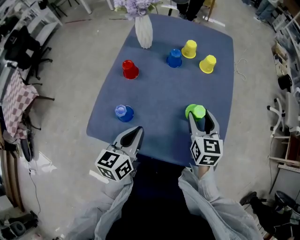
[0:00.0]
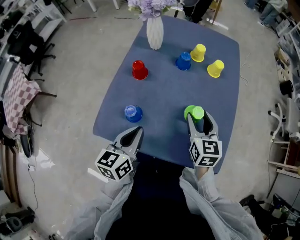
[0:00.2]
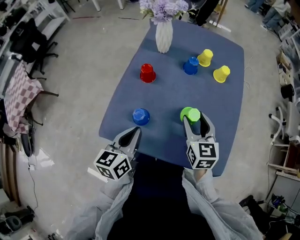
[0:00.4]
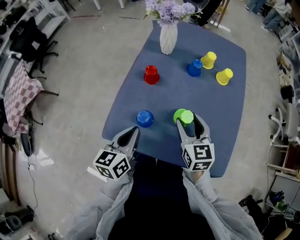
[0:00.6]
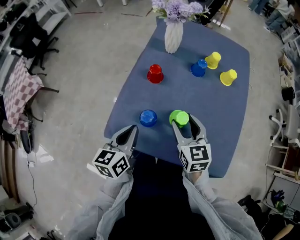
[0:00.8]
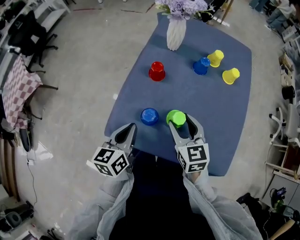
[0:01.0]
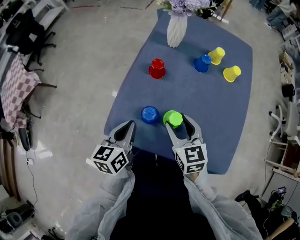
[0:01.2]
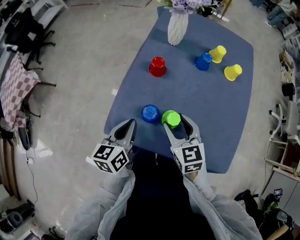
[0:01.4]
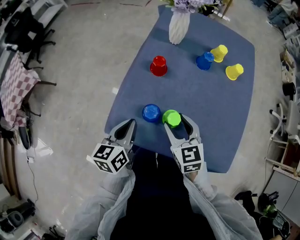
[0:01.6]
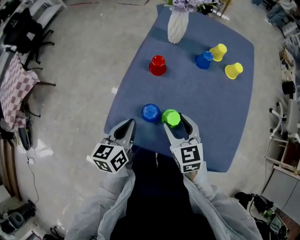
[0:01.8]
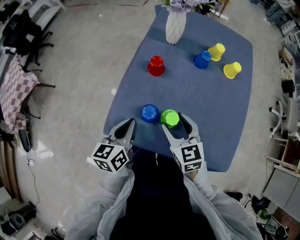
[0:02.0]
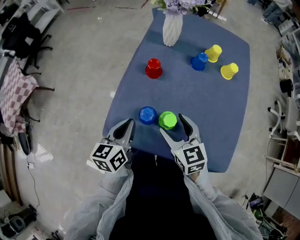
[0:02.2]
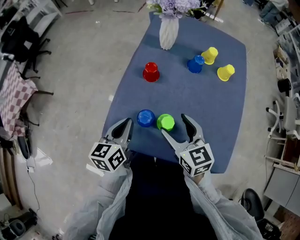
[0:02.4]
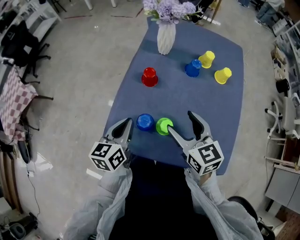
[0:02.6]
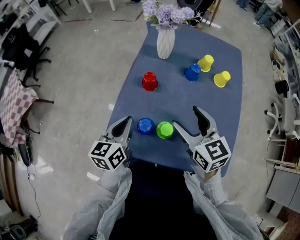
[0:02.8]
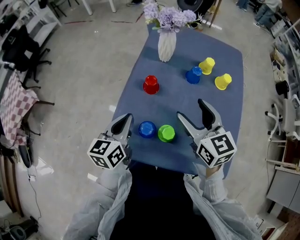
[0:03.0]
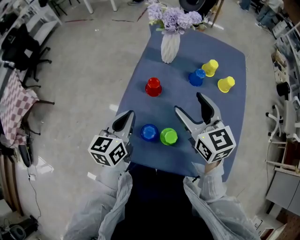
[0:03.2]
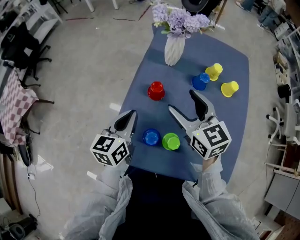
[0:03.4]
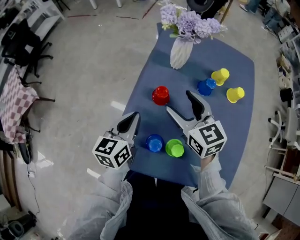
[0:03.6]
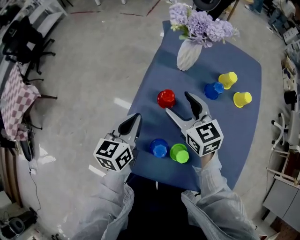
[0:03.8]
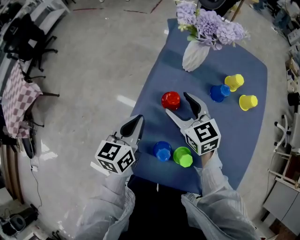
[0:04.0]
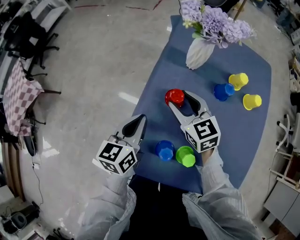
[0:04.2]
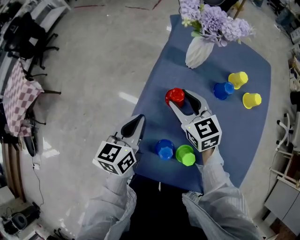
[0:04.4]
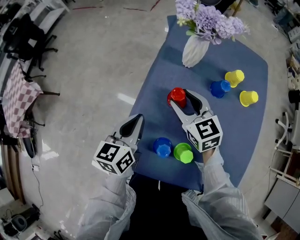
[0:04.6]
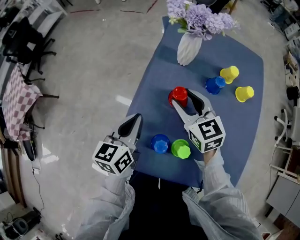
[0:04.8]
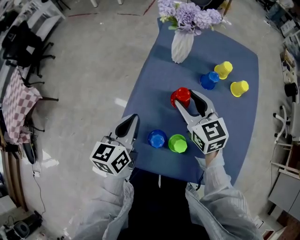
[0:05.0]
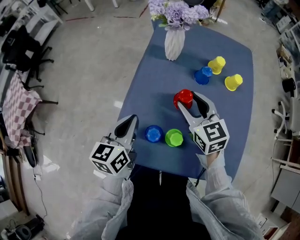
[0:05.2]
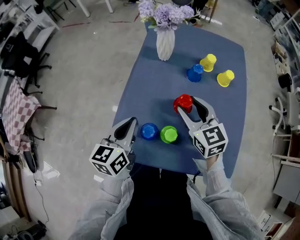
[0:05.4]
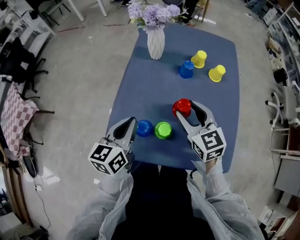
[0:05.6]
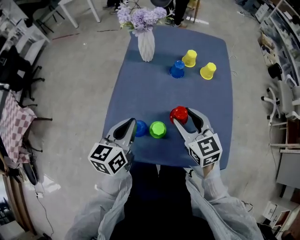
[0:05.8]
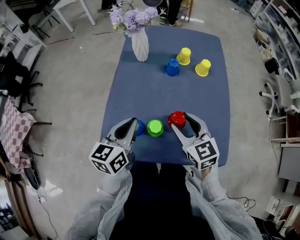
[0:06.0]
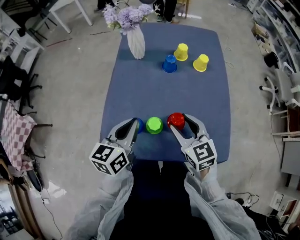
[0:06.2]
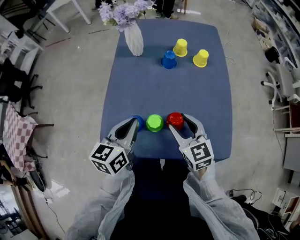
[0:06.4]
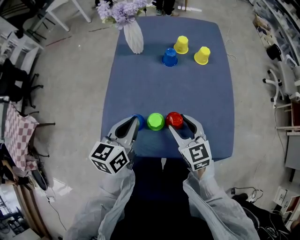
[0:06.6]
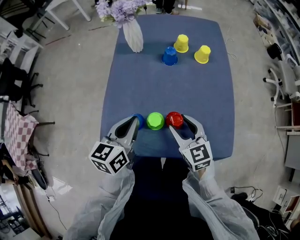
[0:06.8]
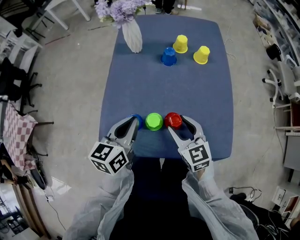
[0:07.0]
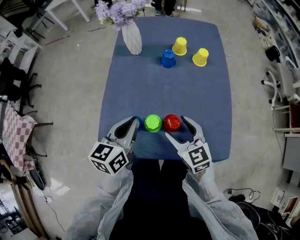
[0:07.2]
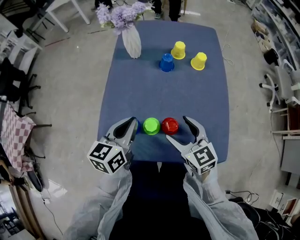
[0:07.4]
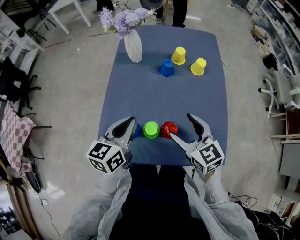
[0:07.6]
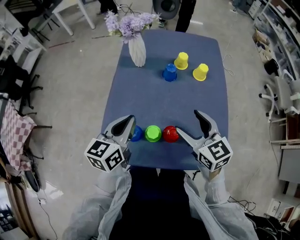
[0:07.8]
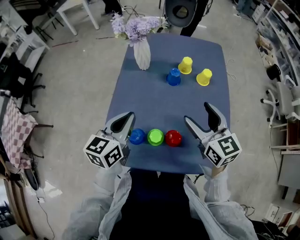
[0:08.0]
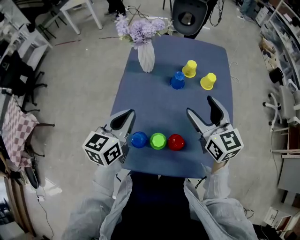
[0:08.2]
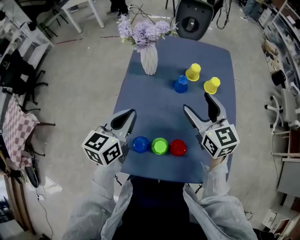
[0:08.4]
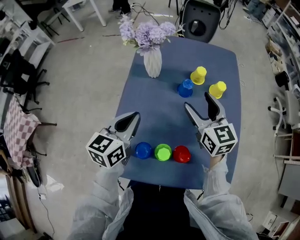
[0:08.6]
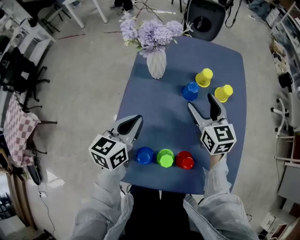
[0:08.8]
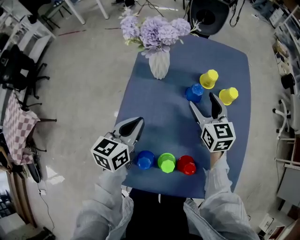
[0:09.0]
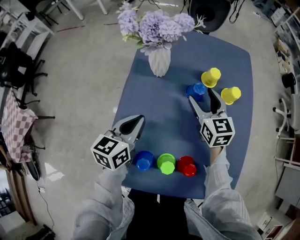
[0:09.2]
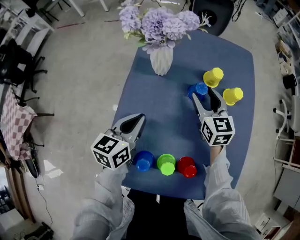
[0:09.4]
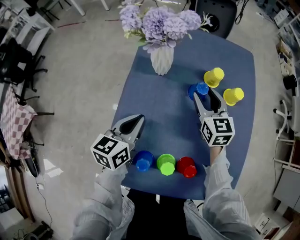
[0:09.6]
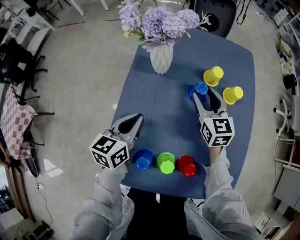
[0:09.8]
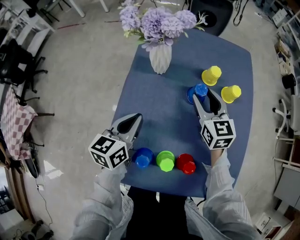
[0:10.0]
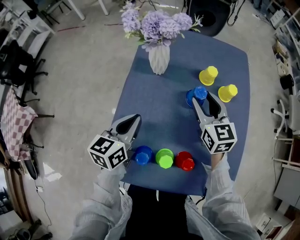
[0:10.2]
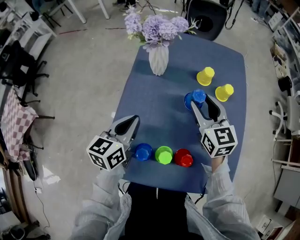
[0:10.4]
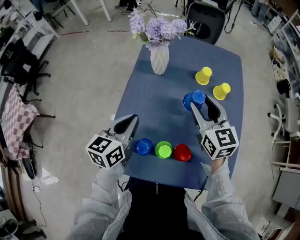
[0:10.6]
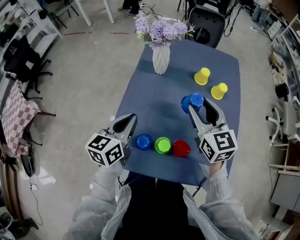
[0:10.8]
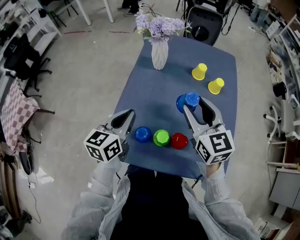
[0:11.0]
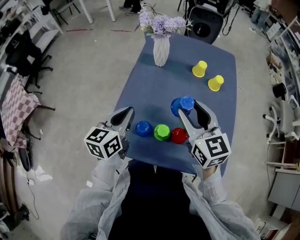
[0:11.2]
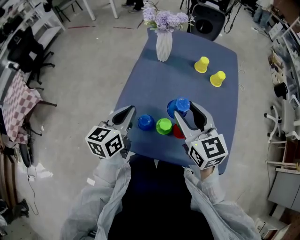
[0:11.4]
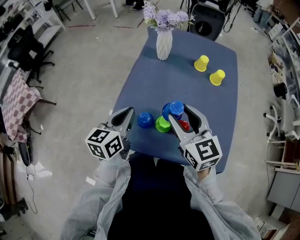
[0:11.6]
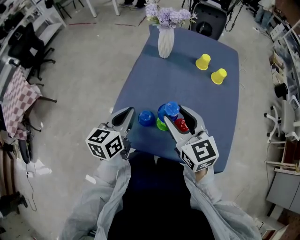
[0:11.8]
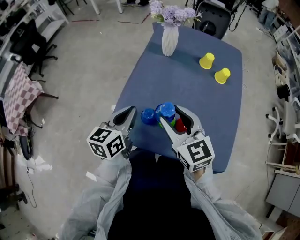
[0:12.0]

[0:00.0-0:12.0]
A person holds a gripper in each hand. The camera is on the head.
0:00.0 to 0:01.6: Both grippers move to the left, approximately 20 cm. The right gripper swivels approximately 20 degrees.
0:01.6 to 0:03.0: The right gripper heads upward, forward and to the right, covering some 15 cm. The left gripper heads forward, covering roughly 10 cm.
0:03.0 to 0:04.4: The right gripper shifts about 20 cm forward, to the left and downward. Meanwhile the left gripper moves forward, approximately 10 cm.
0:04.4 to 0:06.0: The right gripper heads backward and to the right, covering roughly 25 cm; the left gripper is displaced backward, to the right and upward by roughly 15 cm.
0:06.0 to 0:07.6: The right gripper opens its fingers.
0:07.6 to 0:09.0: The right gripper is displaced forward by roughly 25 cm. The left gripper goes approximately 15 cm forward and to the left.
0:09.0 to 0:10.4: The right gripper moves roughly 5 cm.
0:10.4 to 0:12.0: The right gripper is displaced backward and to the left by about 25 cm; the left gripper heads backward, covering approximately 15 cm.

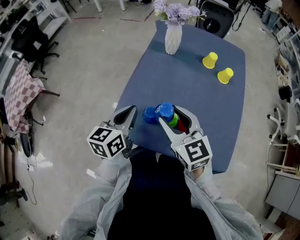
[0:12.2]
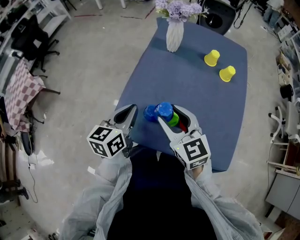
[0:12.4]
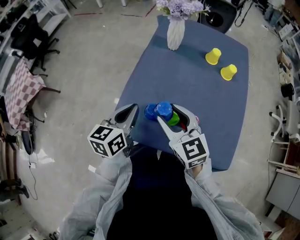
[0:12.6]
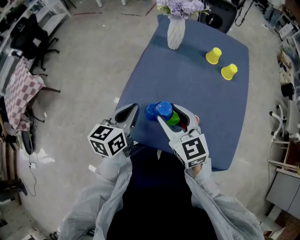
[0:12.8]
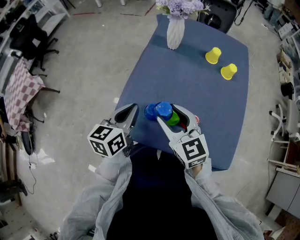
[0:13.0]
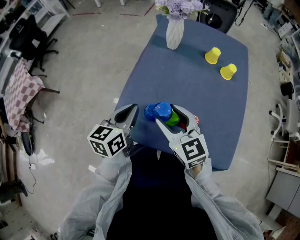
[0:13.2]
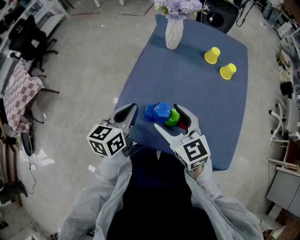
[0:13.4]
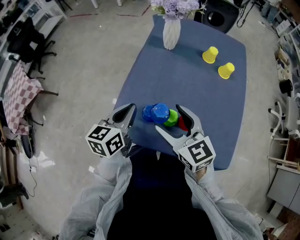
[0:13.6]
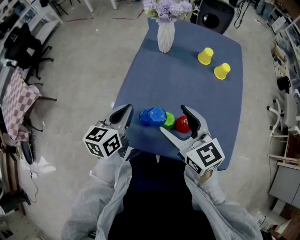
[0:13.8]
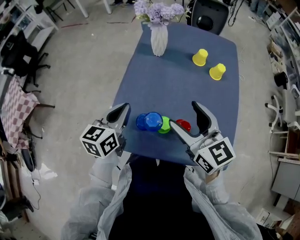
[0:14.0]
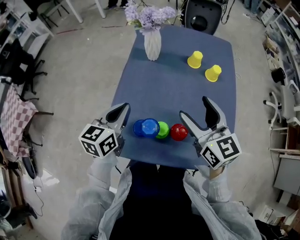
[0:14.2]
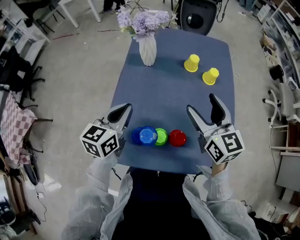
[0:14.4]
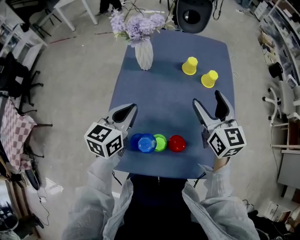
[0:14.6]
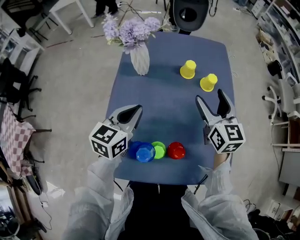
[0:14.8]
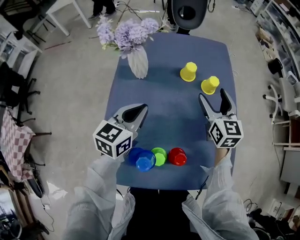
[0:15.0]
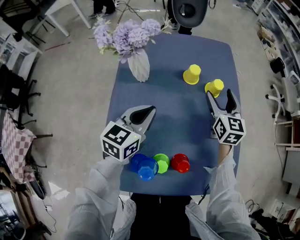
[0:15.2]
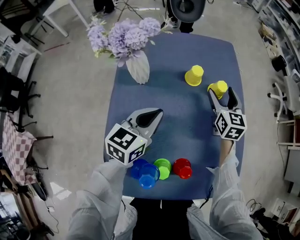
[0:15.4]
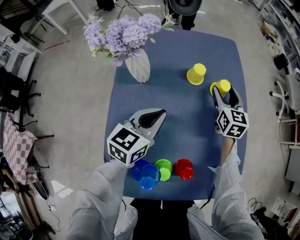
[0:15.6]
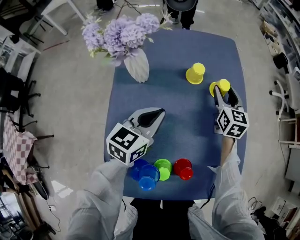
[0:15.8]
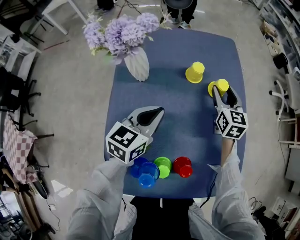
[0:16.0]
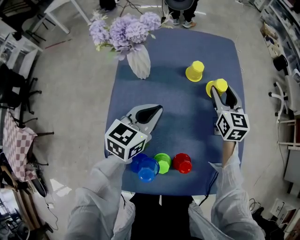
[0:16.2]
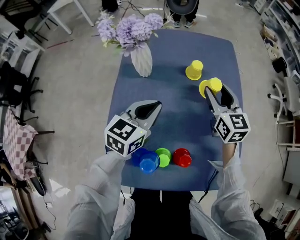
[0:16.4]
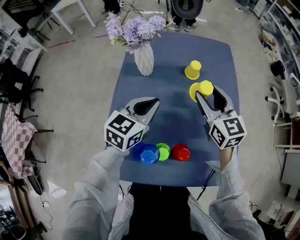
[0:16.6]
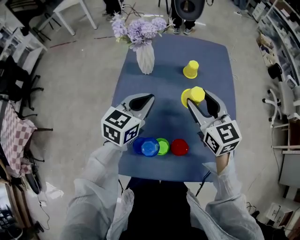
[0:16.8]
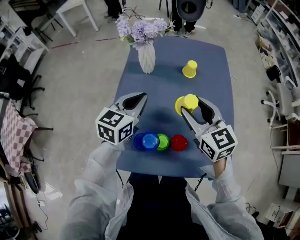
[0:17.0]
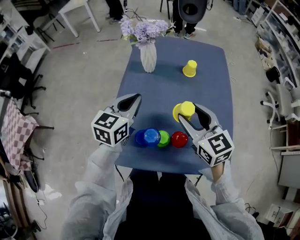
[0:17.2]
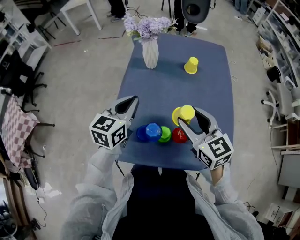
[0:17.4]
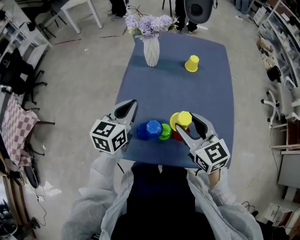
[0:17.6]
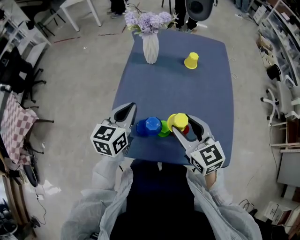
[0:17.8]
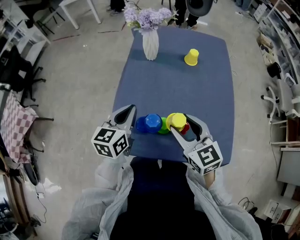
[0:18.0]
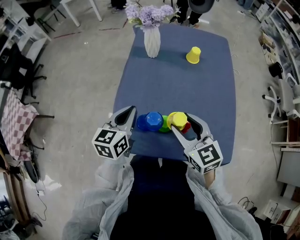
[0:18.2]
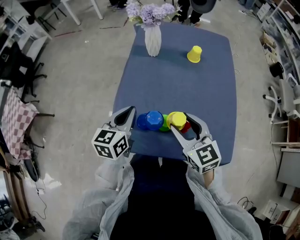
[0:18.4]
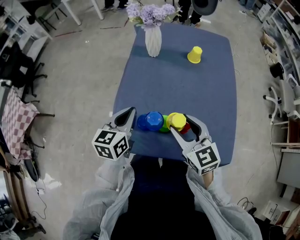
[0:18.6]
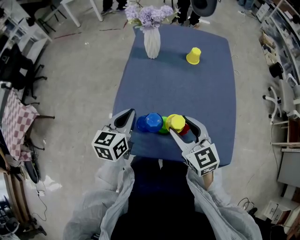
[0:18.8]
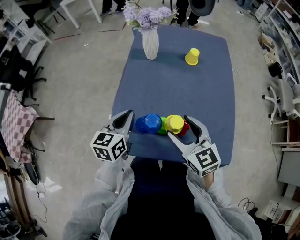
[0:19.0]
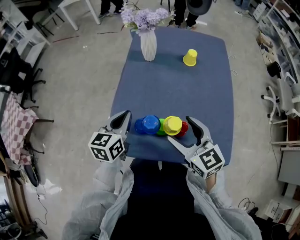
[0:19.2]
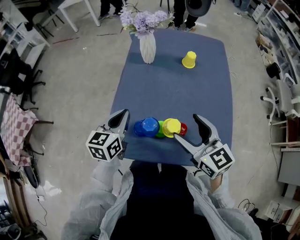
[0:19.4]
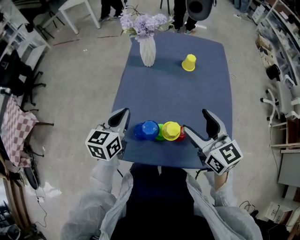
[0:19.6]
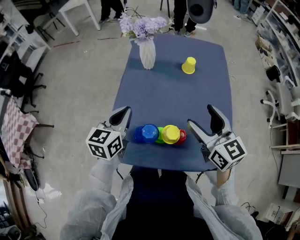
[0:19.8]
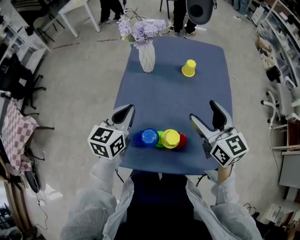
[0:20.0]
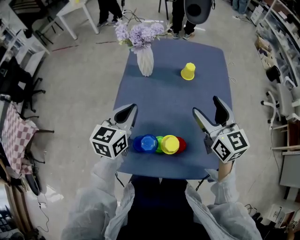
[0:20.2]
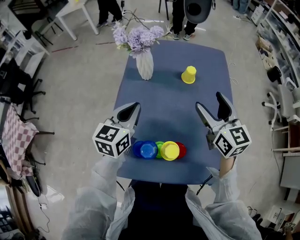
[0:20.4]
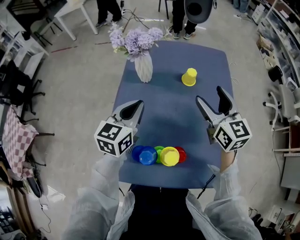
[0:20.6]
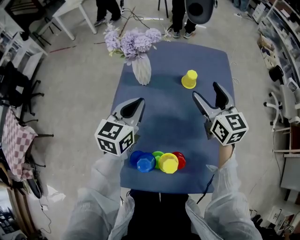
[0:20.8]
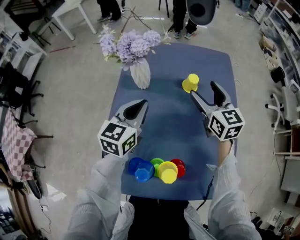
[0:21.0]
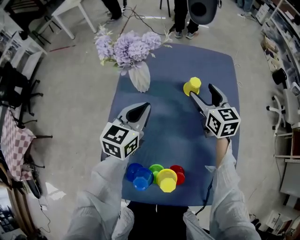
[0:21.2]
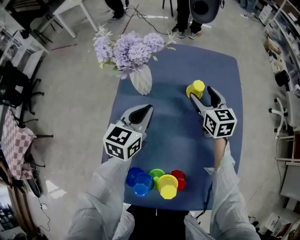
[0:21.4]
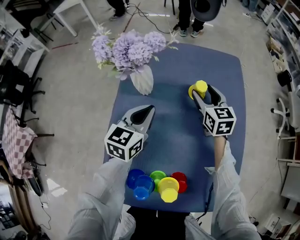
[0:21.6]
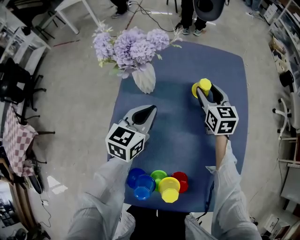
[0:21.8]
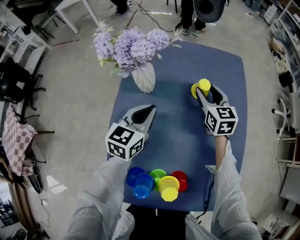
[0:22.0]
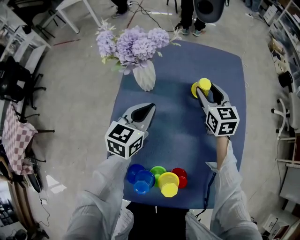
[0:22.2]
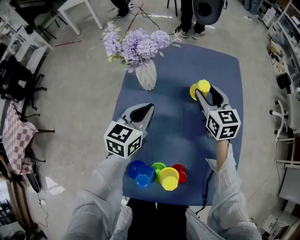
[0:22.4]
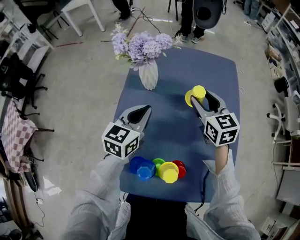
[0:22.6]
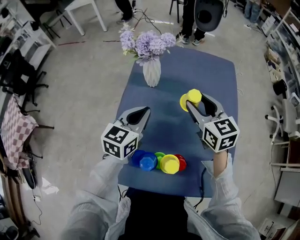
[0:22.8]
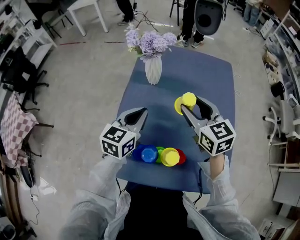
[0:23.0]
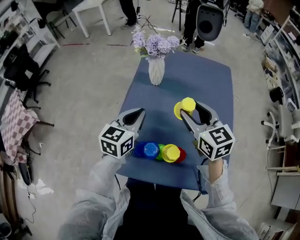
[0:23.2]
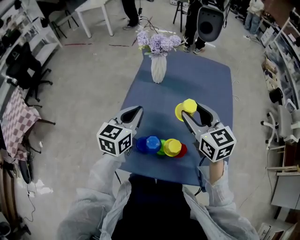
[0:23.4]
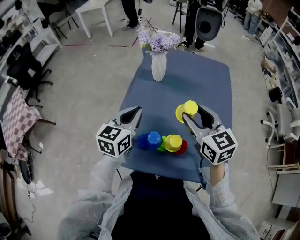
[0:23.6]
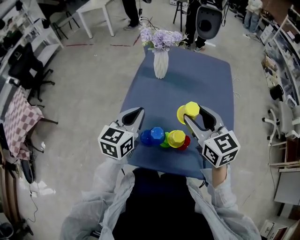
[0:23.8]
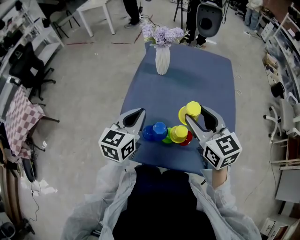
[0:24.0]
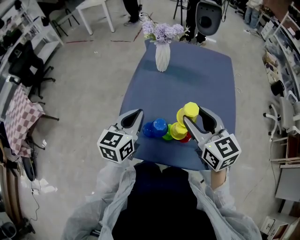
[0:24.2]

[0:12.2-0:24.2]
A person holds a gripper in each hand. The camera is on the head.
0:12.2 to 0:13.8: The right gripper opens.
0:13.8 to 0:15.2: The right gripper changes place by roughly 35 cm, and rotates some 50 degrees. Meanwhile the left gripper changes place by some 25 cm, and turns by approximately 30 degrees.
0:15.2 to 0:16.6: The right gripper heads backward, upward and to the left, covering approximately 10 cm, swivels about 20 degrees, and closes up.
0:16.6 to 0:18.2: The two grippers go some 20 cm backward and to the left. The left gripper turns by about 20 degrees.
0:18.2 to 0:19.8: The right gripper moves to the right and upward, approximately 10 cm, and opens its fingers.
0:19.8 to 0:21.2: The left gripper moves forward and to the right, roughly 20 cm. The right gripper moves forward, some 25 cm.
0:21.2 to 0:22.6: The right gripper ends up roughly 5 cm from where it was.
0:22.6 to 0:24.2: The left gripper shifts about 20 cm backward and to the left. Meanwhile the right gripper travels backward by roughly 25 cm.
